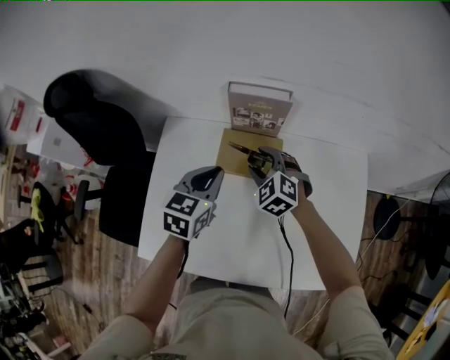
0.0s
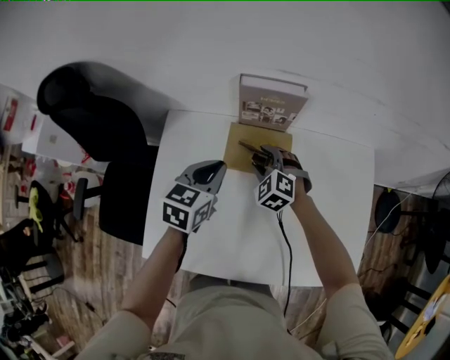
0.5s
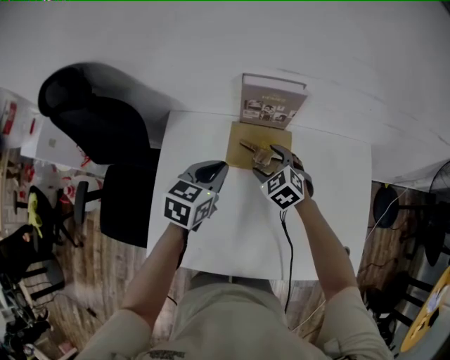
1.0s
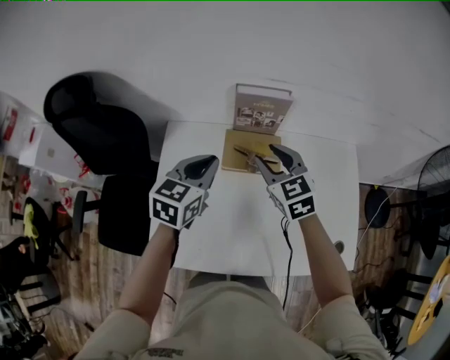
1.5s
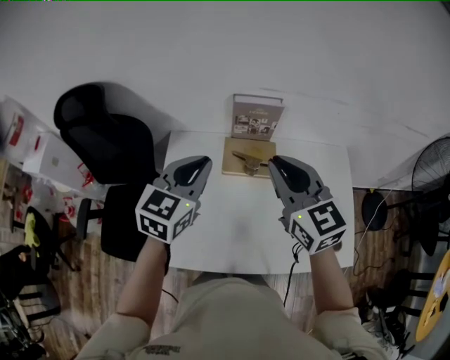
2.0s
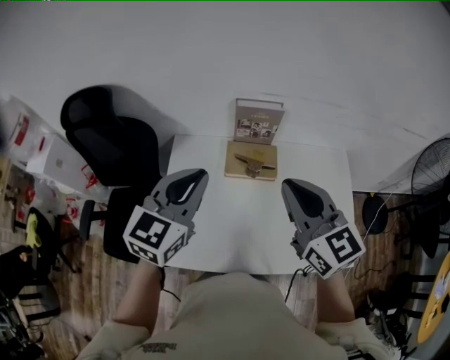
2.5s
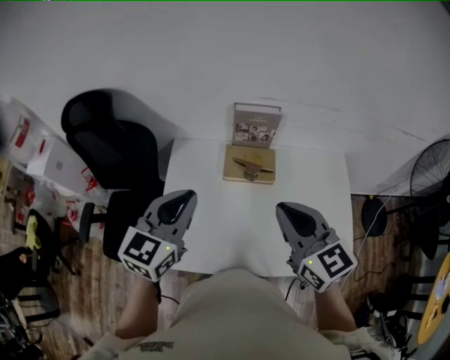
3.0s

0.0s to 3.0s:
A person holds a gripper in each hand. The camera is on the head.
0.0s to 1.5s: The left gripper heads upward and to the left, covering some 10 cm. The right gripper moves upward, approximately 10 cm, and rotates roughly 30 degrees.
1.5s to 3.0s: Both grippers travel together backward and upward, roughly 20 cm. The right gripper closes.

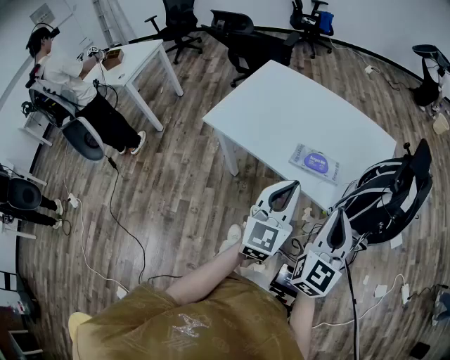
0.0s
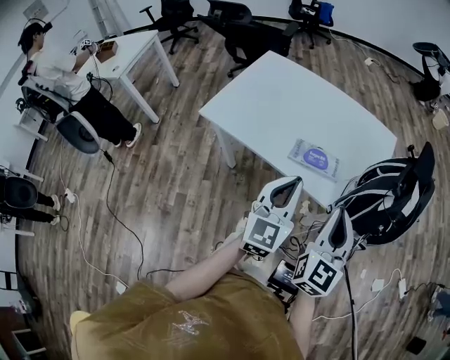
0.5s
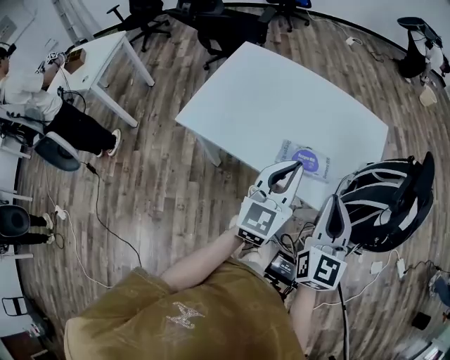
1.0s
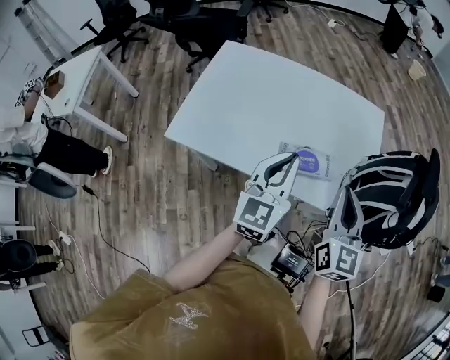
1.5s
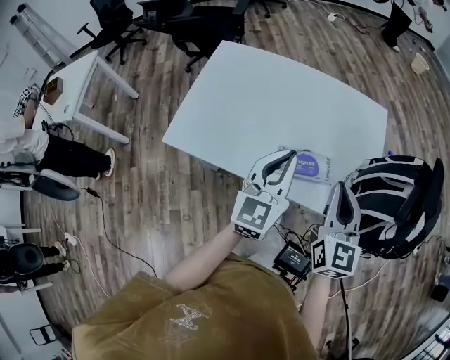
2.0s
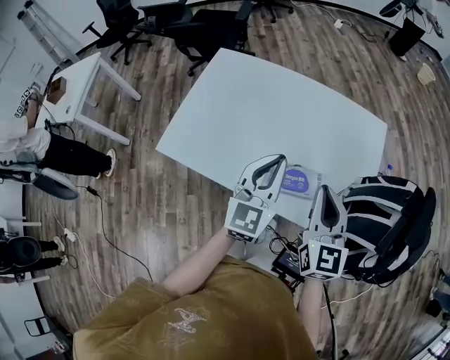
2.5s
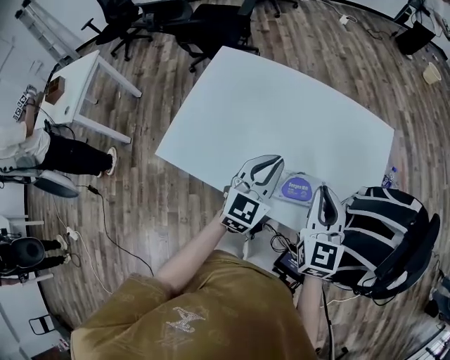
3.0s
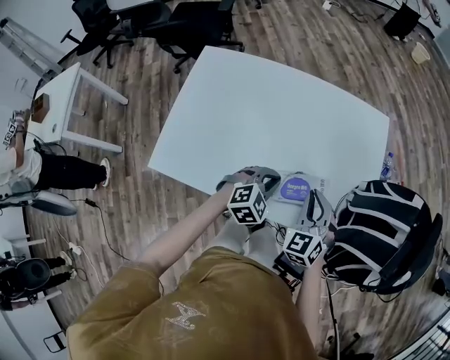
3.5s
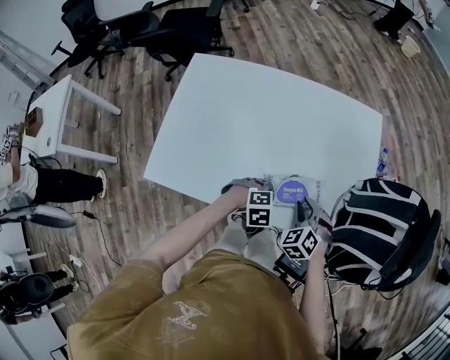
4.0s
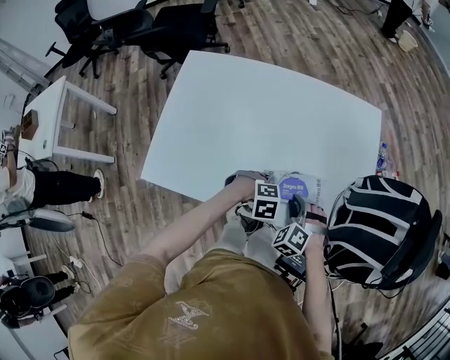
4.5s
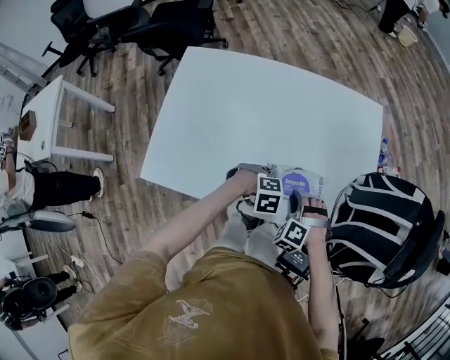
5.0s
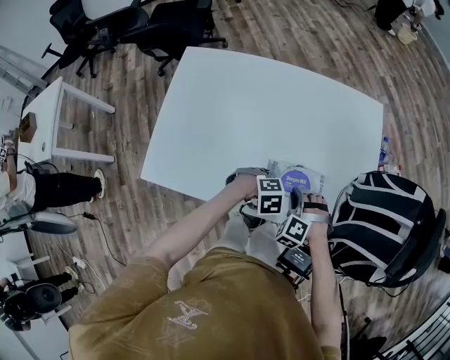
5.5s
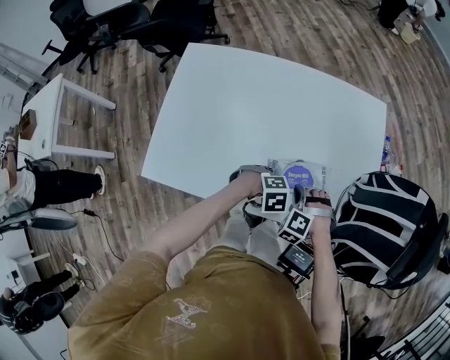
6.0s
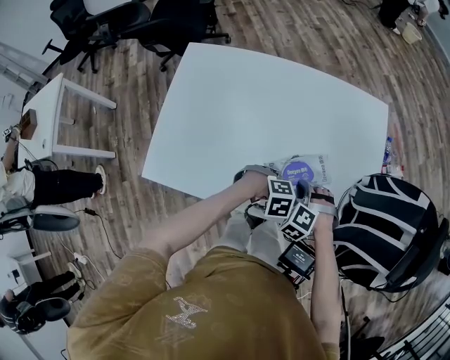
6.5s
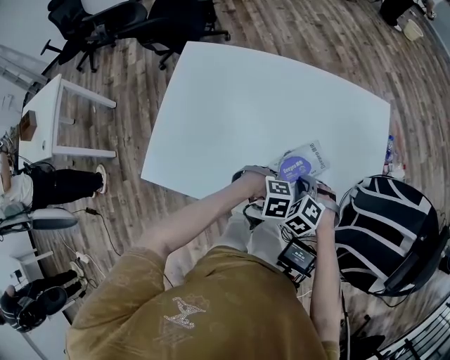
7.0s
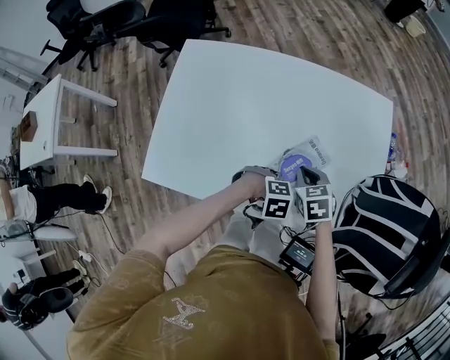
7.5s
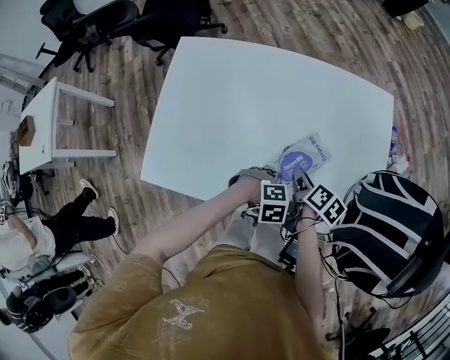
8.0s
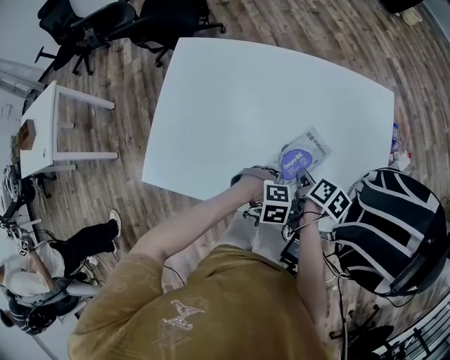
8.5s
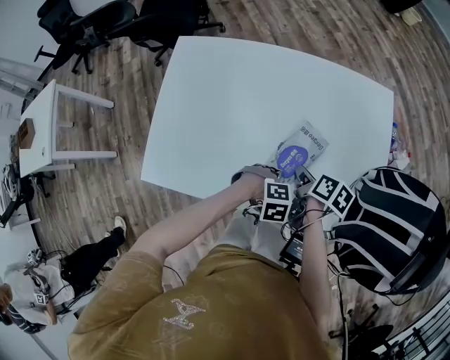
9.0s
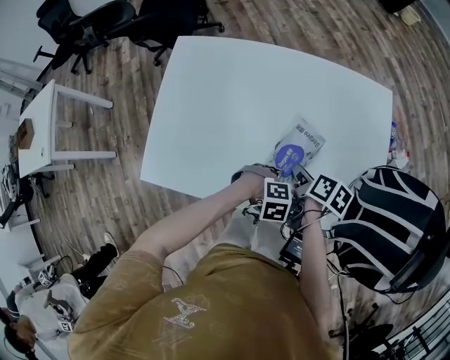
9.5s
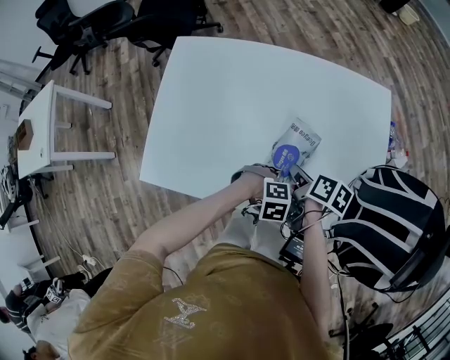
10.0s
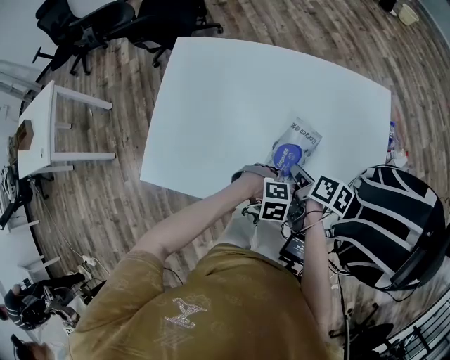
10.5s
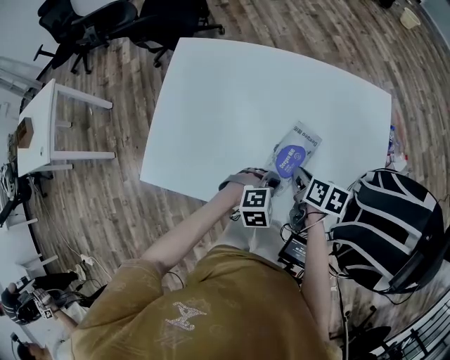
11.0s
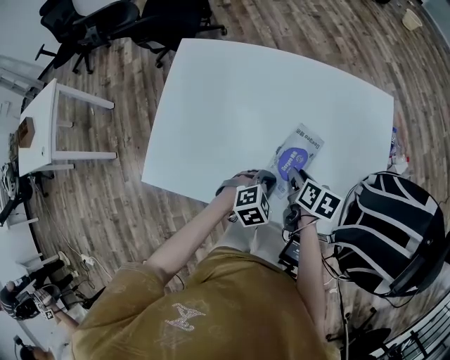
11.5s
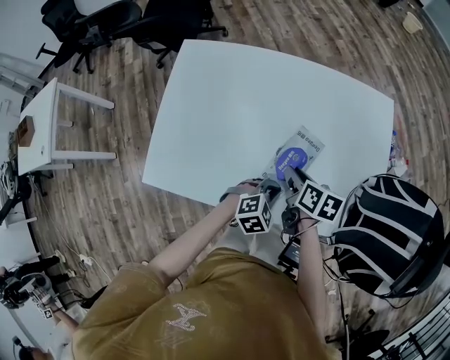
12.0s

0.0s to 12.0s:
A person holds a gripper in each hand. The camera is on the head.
0.0s to 2.0s: The two grippers go roughly 20 cm forward.
2.0s to 4.0s: The grippers both shift downward by roughly 25 cm. The right gripper tips its fingers downward by about 40 degrees, while the left gripper points its fingers about 70 degrees further downward.
4.0s to 6.0s: The right gripper changes place by some 5 cm, and turns by roughly 30 degrees.
6.0s to 8.0s: The right gripper ends up approximately 5 cm from where it was, twists roughly 130 degrees clockwise, seen from behind, and opens.
8.0s to 10.0s: The right gripper closes.
10.0s to 12.0s: The left gripper swivels about 30 degrees; the right gripper opens its fingers.

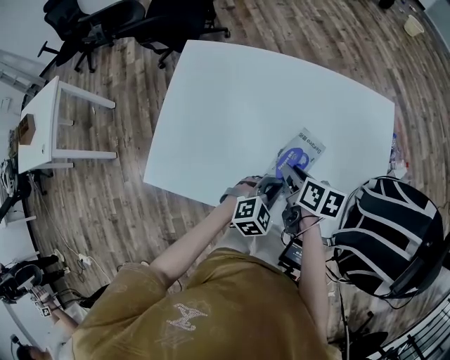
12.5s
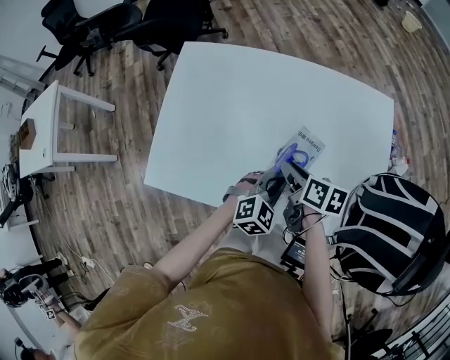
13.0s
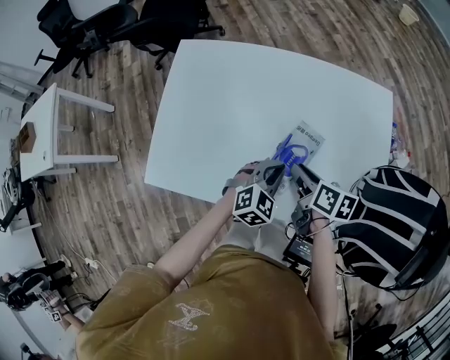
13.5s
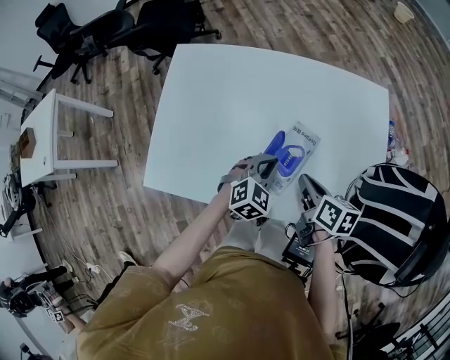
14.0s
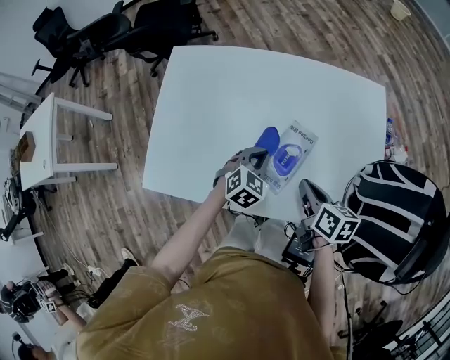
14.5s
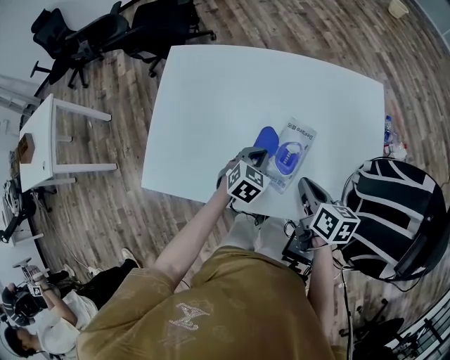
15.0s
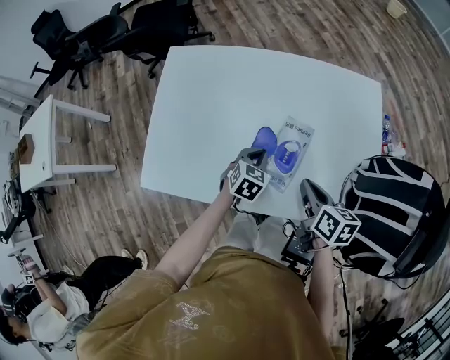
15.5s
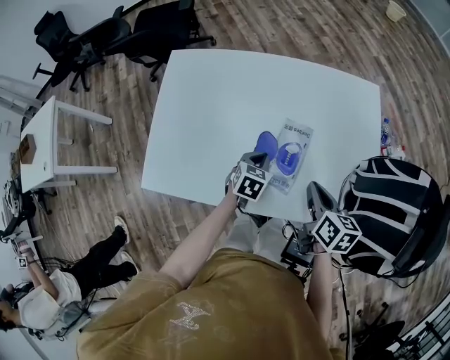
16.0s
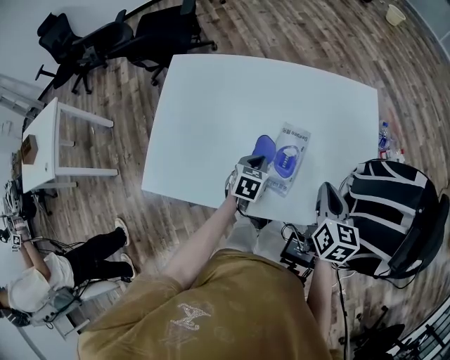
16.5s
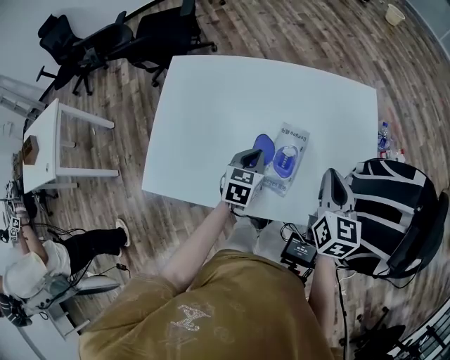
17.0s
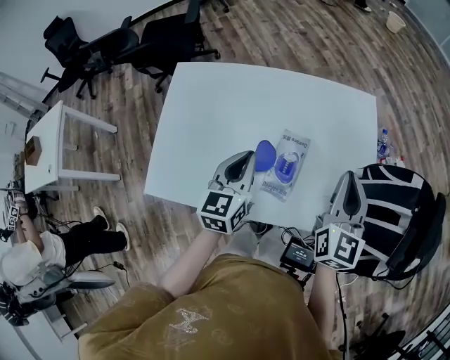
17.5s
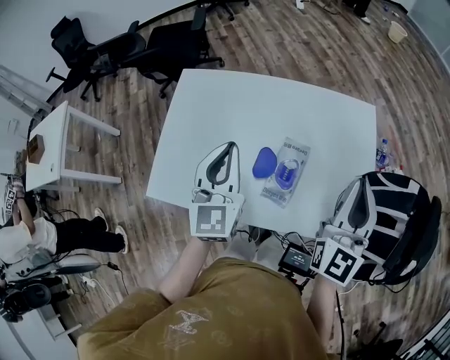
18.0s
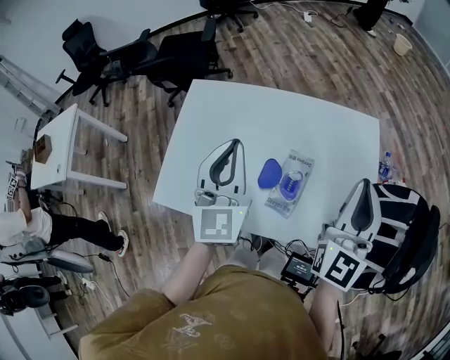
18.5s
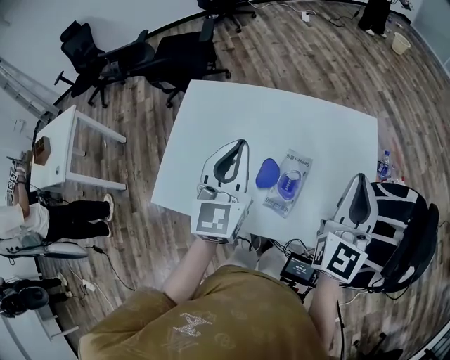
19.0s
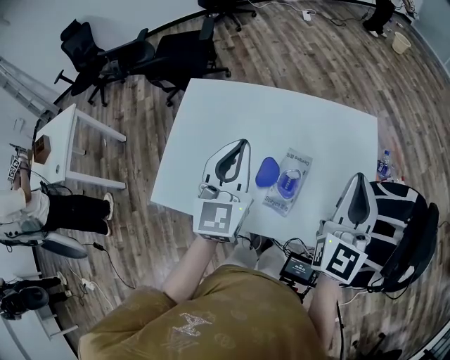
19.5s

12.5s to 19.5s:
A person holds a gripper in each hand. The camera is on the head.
12.5s to 14.5s: The right gripper travels to the right and backward by approximately 10 cm, and closes its fingers; the left gripper moves forward, about 10 cm.
14.5s to 16.0s: The left gripper swivels approximately 30 degrees.
16.0s to 17.5s: Both grippers move upward, about 15 cm. The left gripper angles its fingers upward, by approximately 30 degrees; the right gripper turns by some 50 degrees.
17.5s to 19.5s: The two grippers go roughly 10 cm upward. The left gripper turns by approximately 20 degrees.

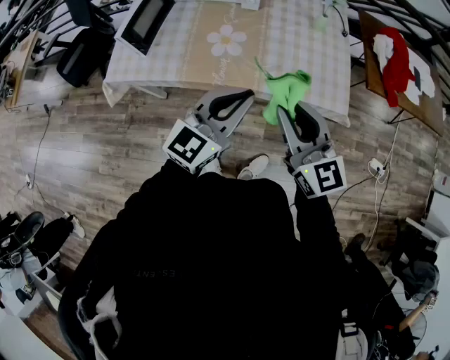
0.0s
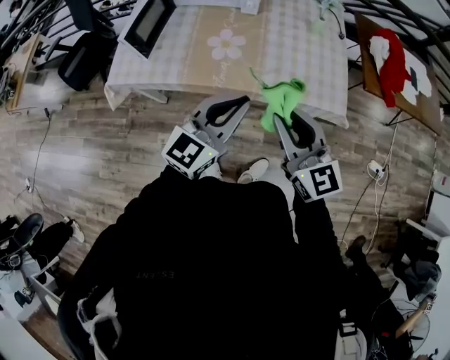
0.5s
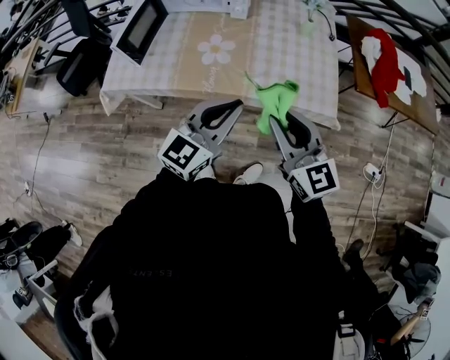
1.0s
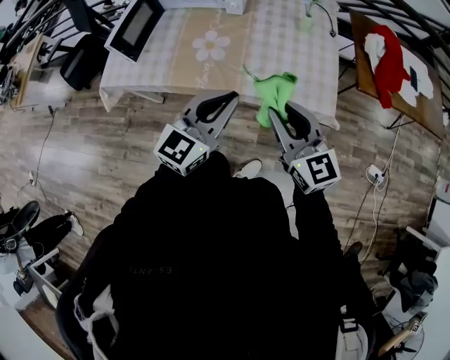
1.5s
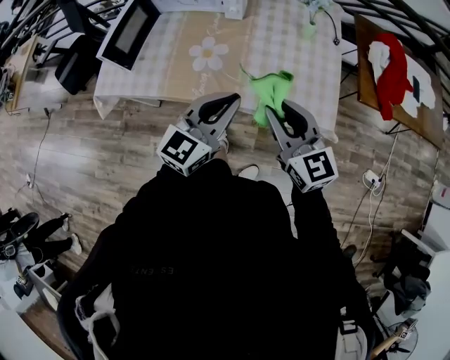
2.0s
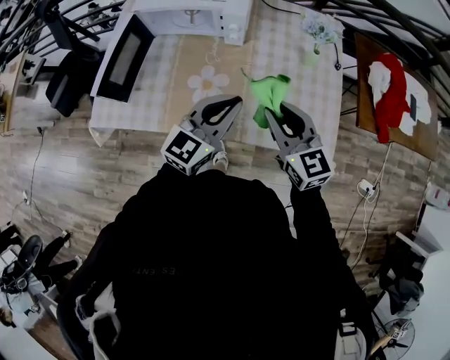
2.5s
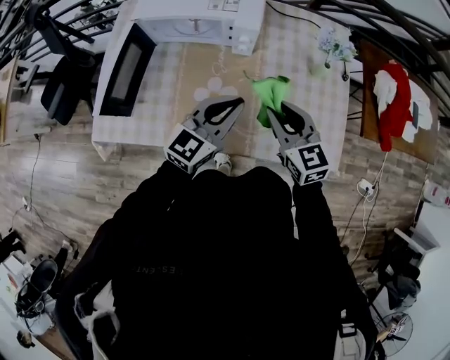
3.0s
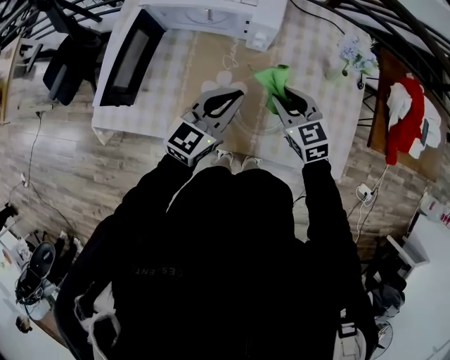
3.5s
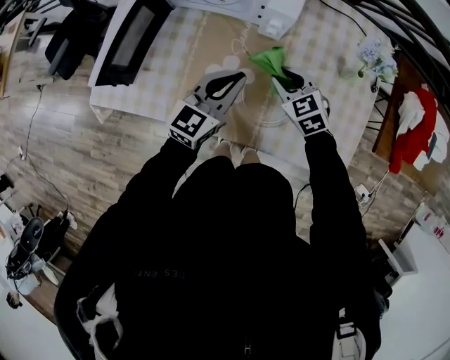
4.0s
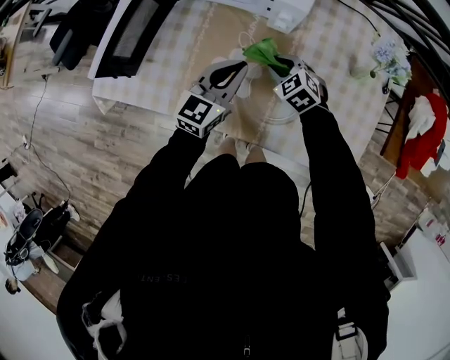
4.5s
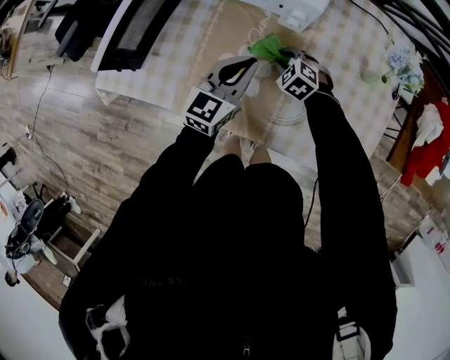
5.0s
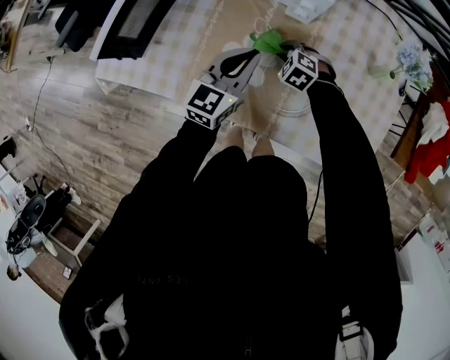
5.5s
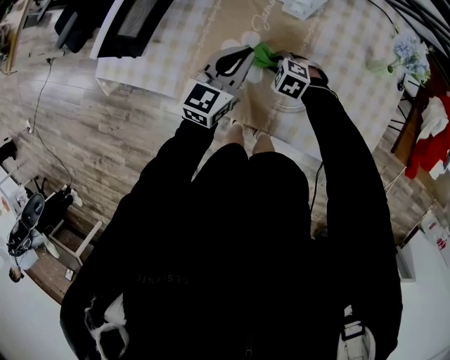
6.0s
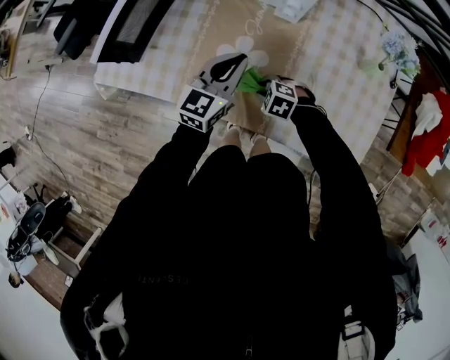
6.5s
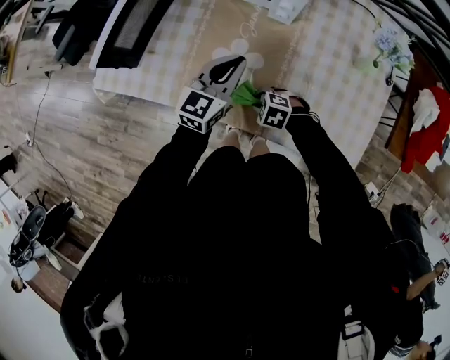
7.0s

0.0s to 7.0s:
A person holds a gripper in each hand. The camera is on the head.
0.0s to 2.0s: The grippers both shift forward and to the right by approximately 10 cm.
2.0s to 3.5s: The right gripper is displaced forward and downward by roughly 30 cm, and swivels about 30 degrees, while the left gripper moves forward and to the left, about 25 cm.
3.5s to 5.0s: The right gripper moves downward, about 20 cm, and turns by roughly 40 degrees. Meanwhile the left gripper goes roughly 10 cm downward.
5.0s to 7.0s: The right gripper shifts by approximately 20 cm, and changes its angle by roughly 30 degrees.
